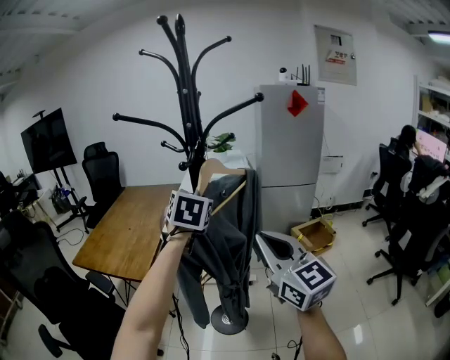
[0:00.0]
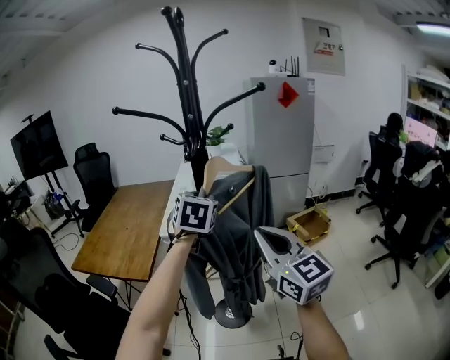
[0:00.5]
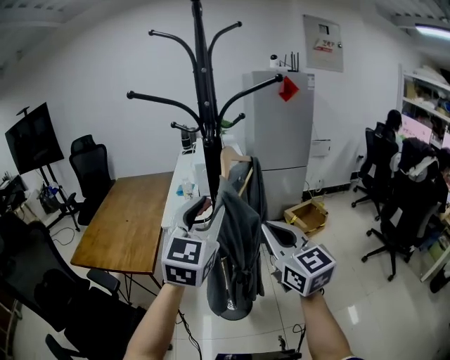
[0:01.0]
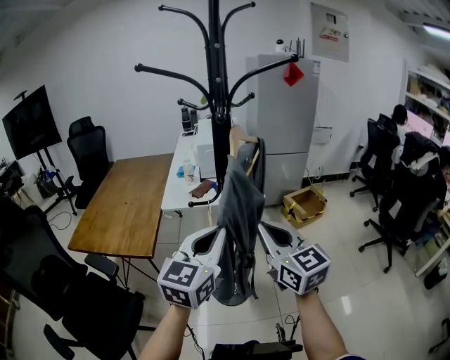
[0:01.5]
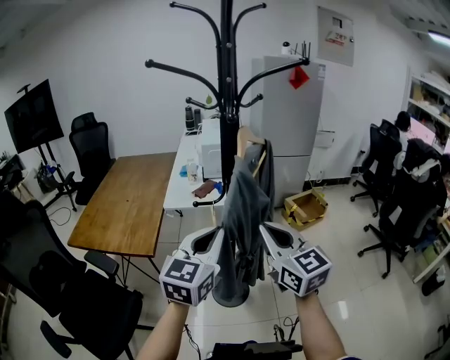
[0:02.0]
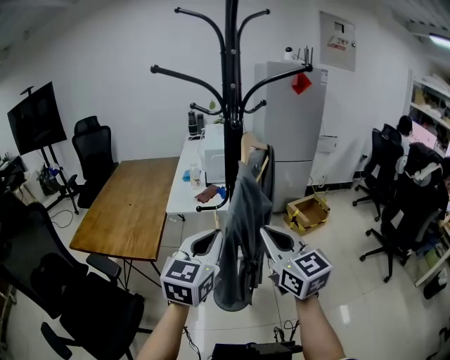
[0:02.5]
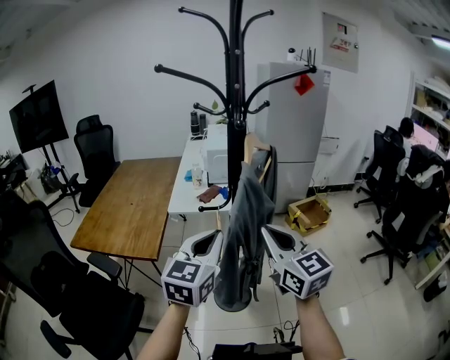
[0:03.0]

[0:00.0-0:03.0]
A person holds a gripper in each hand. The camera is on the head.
0:00.0 to 0:01.5: The left gripper travels backward and downward by roughly 20 cm, swivels about 40 degrees, and opens and closes again. Meanwhile the right gripper goes roughly 10 cm downward and to the left.
0:01.5 to 0:03.0: The grippers stay close to where they were, moving slightly.

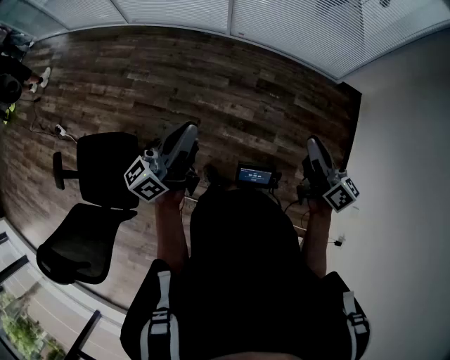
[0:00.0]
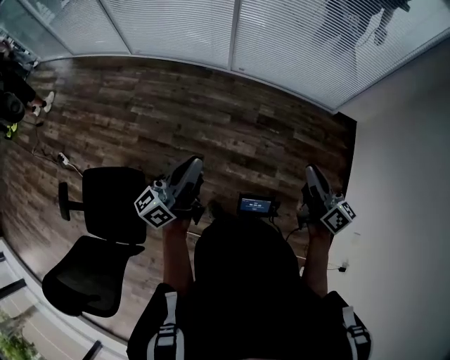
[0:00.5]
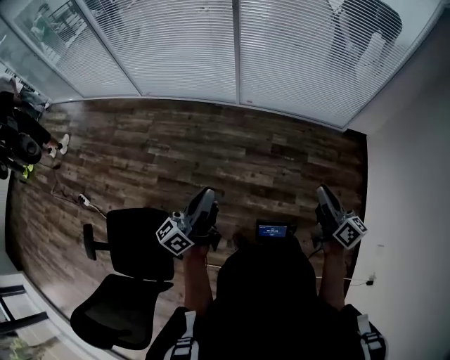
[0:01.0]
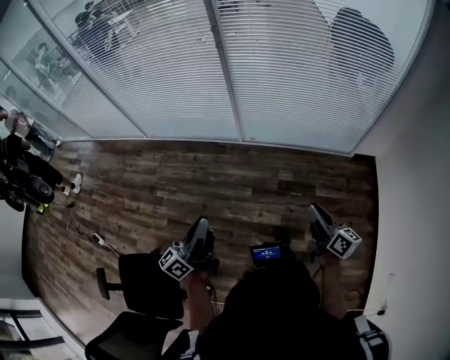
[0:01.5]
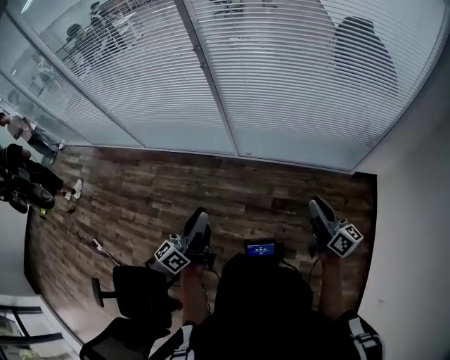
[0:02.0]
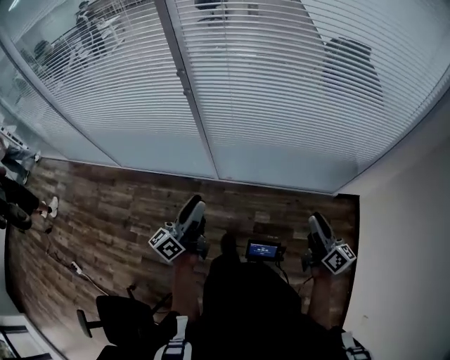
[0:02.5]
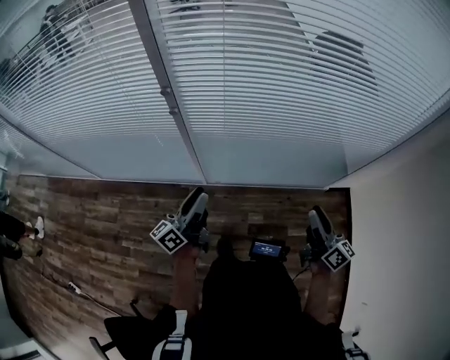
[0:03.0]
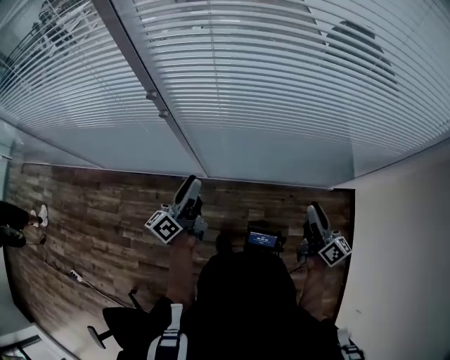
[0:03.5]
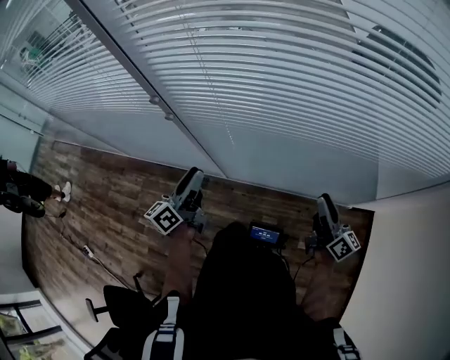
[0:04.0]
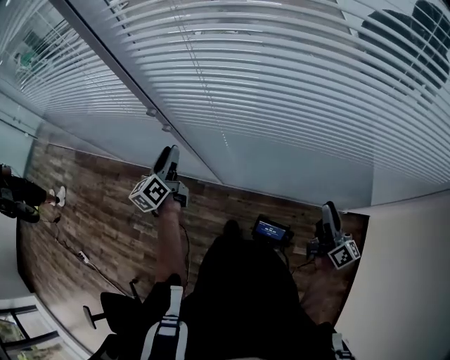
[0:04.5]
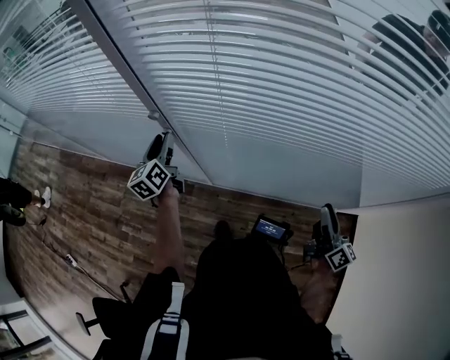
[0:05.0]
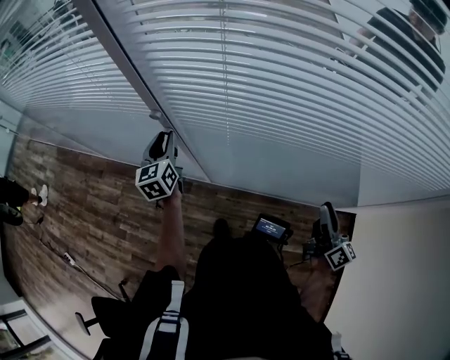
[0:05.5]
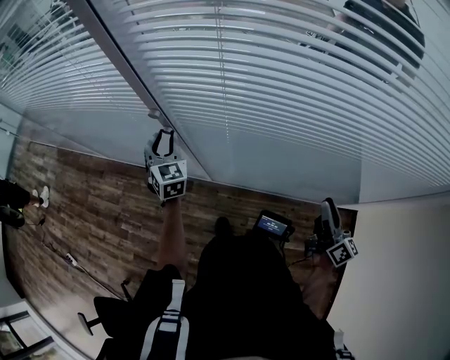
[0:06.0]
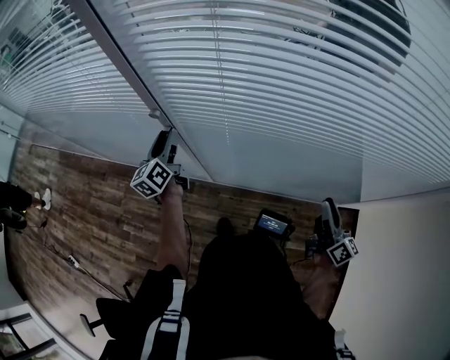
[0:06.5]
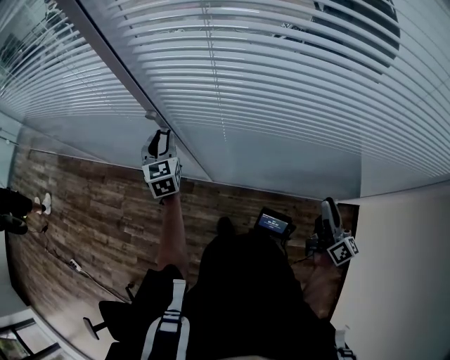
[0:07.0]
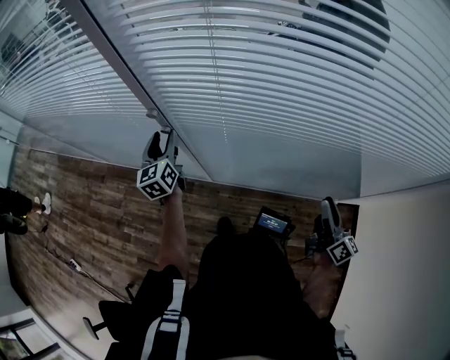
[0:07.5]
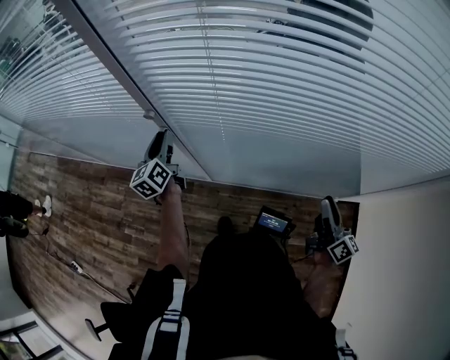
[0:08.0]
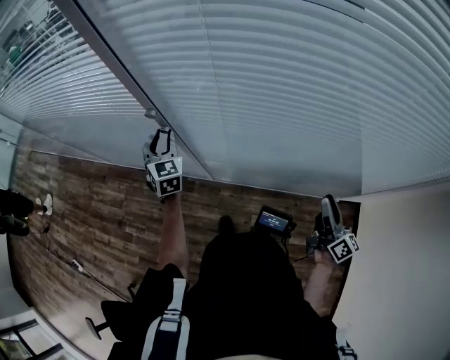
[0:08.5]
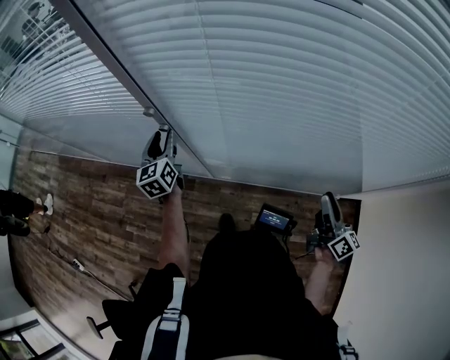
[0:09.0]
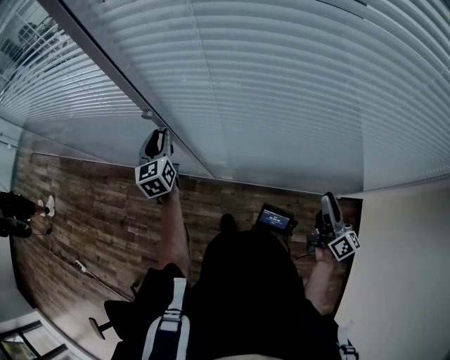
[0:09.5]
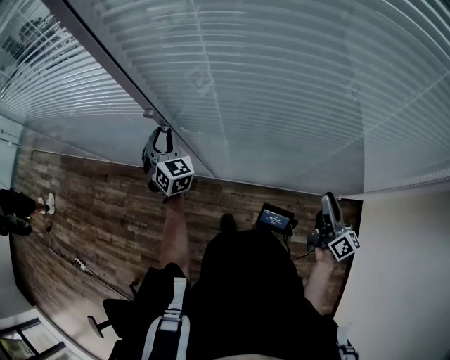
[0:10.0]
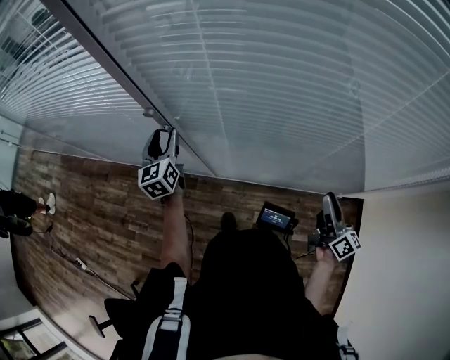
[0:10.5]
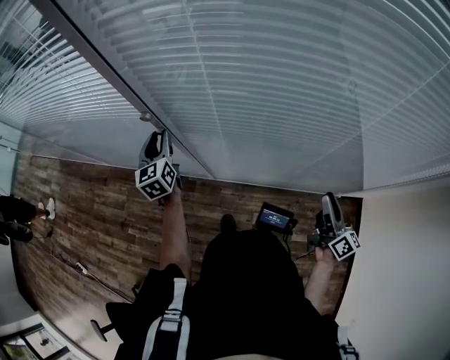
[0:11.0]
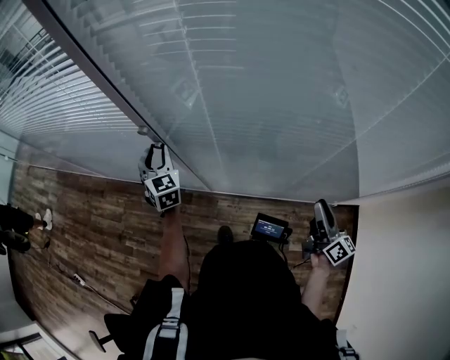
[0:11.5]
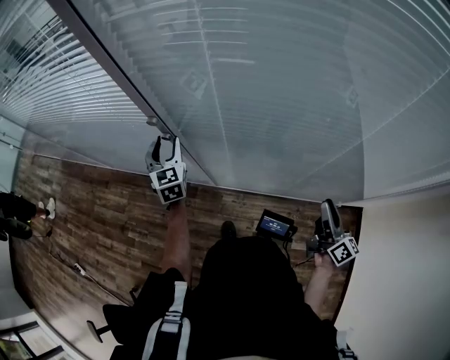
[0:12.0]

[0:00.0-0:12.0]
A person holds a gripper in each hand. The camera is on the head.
0:00.0 to 0:02.0: Both grippers move forward, about 30 cm. The left gripper opens.
0:02.0 to 0:04.0: The two grippers go roughly 40 cm forward.
0:04.0 to 0:06.0: The left gripper goes about 20 cm forward and to the left, and twists some 60 degrees clockwise, seen from behind.
0:06.0 to 0:08.0: The left gripper rolls counterclockwise, seen from behind, by roughly 50 degrees.
0:08.0 to 0:10.0: The left gripper twists roughly 60 degrees clockwise, seen from behind.
0:10.0 to 0:12.0: The left gripper turns by approximately 20 degrees.

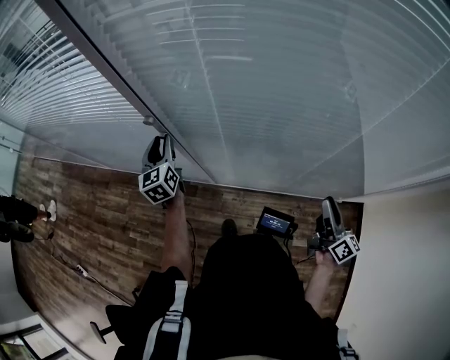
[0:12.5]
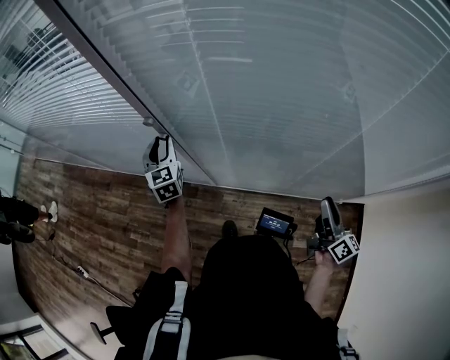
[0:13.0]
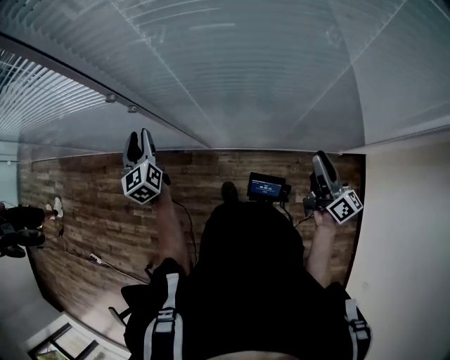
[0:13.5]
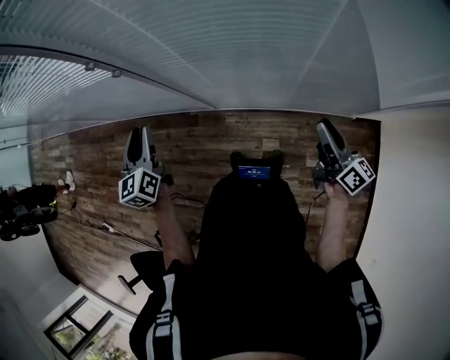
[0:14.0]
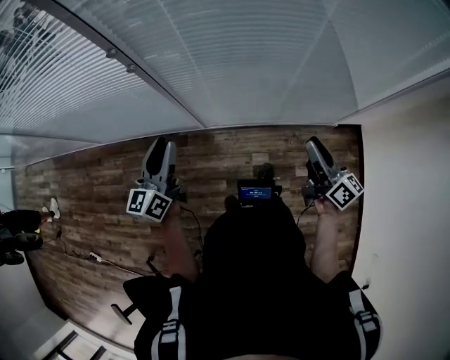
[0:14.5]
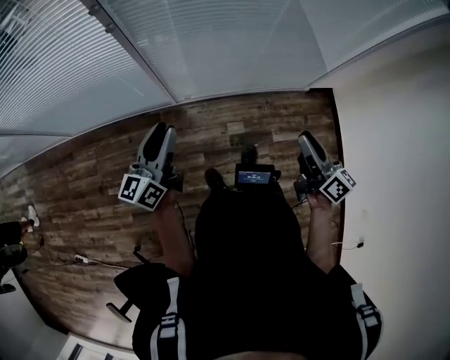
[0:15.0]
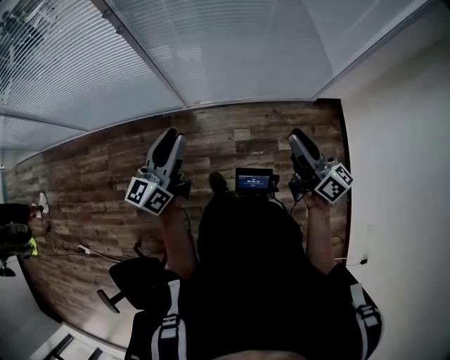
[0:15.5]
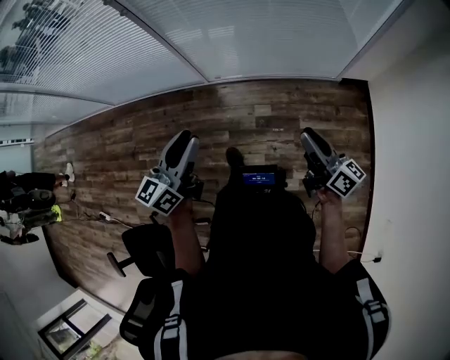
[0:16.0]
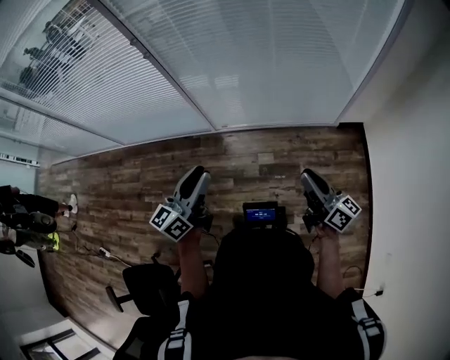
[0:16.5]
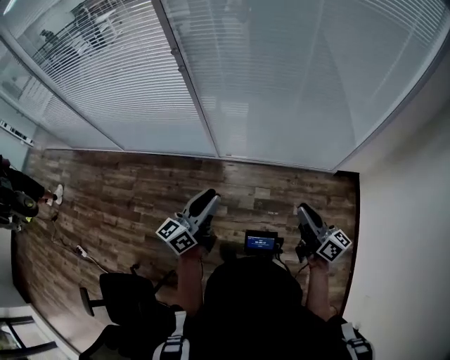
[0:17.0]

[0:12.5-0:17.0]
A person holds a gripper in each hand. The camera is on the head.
0:12.5 to 0:14.5: The right gripper goes about 15 cm backward and to the left; the left gripper shifts approximately 25 cm backward, and turns by about 40 degrees.
0:14.5 to 0:17.0: The right gripper shifts some 25 cm backward. Meanwhile the left gripper is displaced backward and to the right by roughly 30 cm.

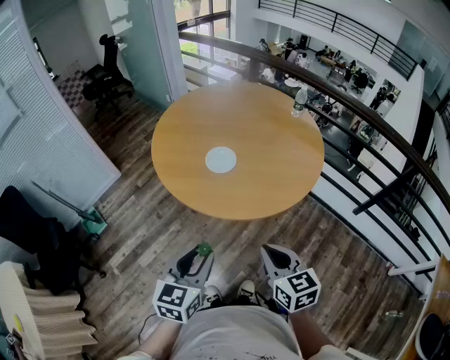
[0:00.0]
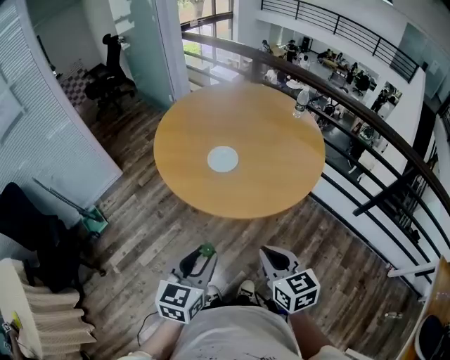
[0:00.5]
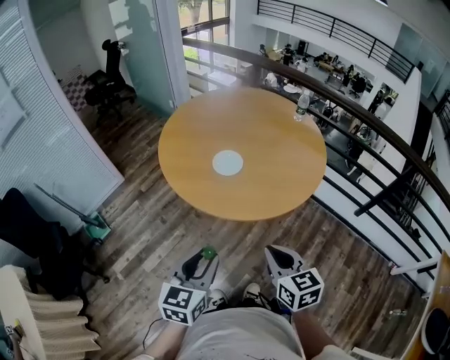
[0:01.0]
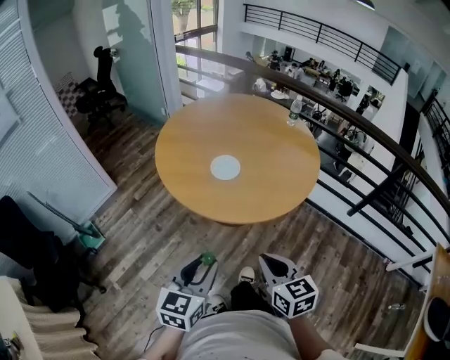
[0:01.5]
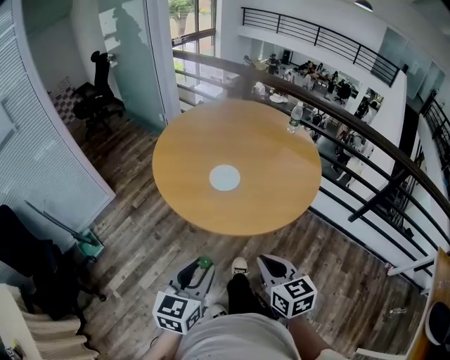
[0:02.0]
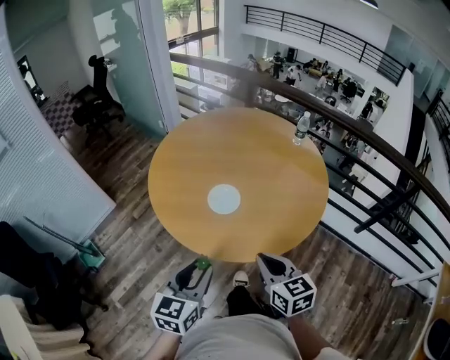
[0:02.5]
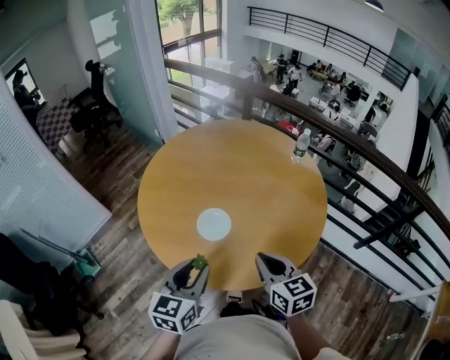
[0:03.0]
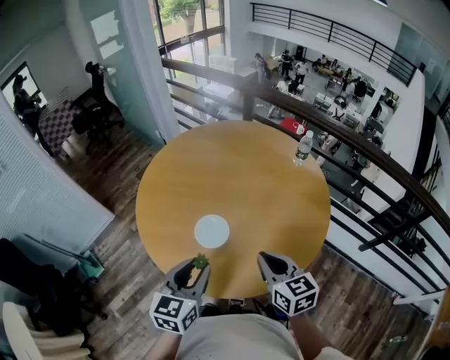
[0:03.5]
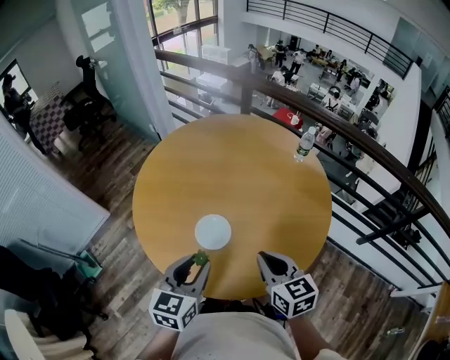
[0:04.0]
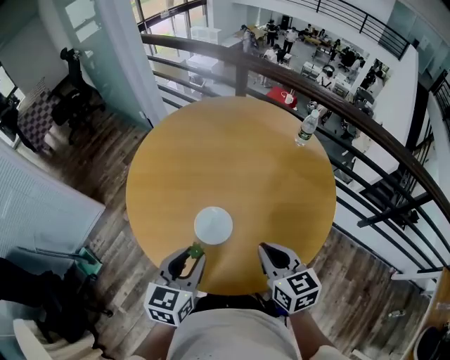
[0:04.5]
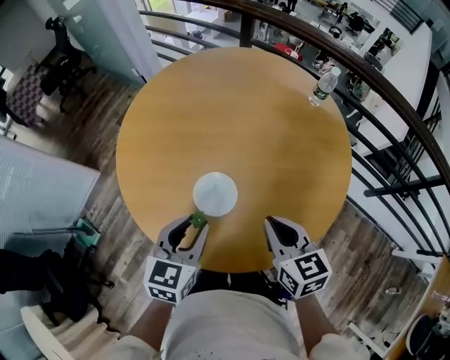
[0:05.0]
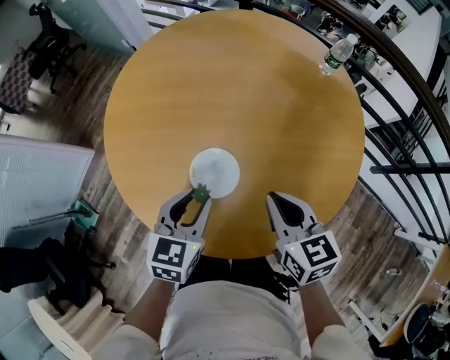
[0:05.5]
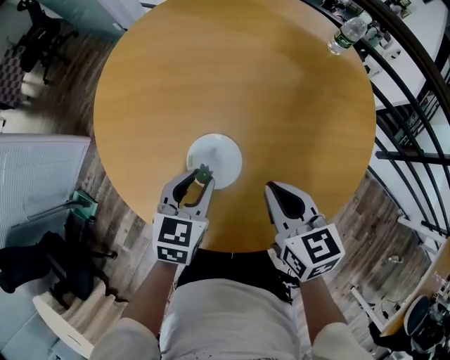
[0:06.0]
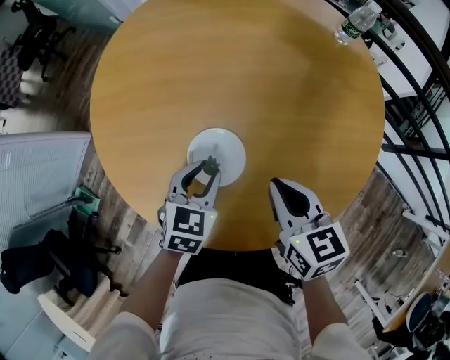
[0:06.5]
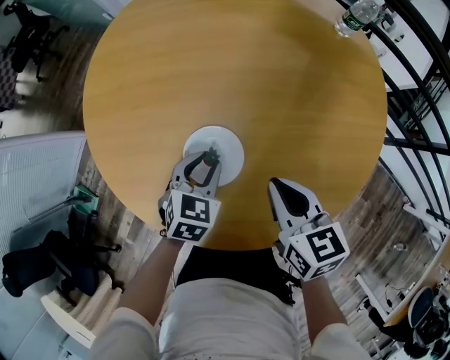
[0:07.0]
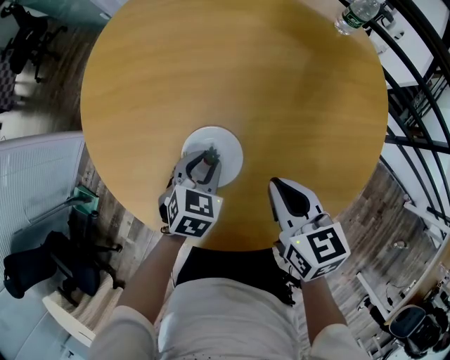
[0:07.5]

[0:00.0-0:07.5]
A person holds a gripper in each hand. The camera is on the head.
0:00.0 to 0:02.0: Both grippers move to the left, roughly 5 cm.
0:02.0 to 0:04.0: Both grippers travel together forward, approximately 30 cm.
0:04.0 to 0:05.5: Both grippers move downward and forward, approximately 15 cm.
0:05.5 to 0:07.5: The left gripper goes some 15 cm downward, and changes its angle by some 20 degrees. The right gripper shifts about 10 cm downward.
